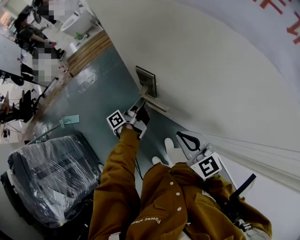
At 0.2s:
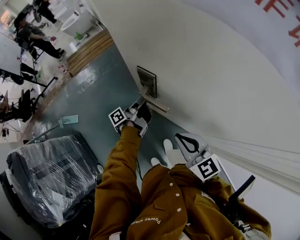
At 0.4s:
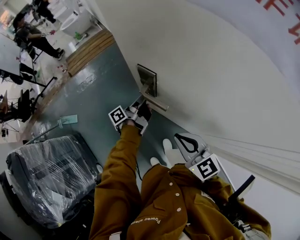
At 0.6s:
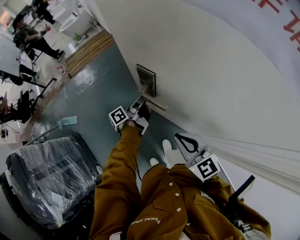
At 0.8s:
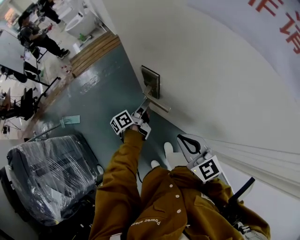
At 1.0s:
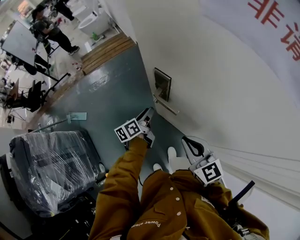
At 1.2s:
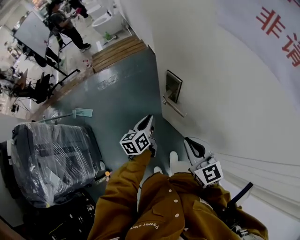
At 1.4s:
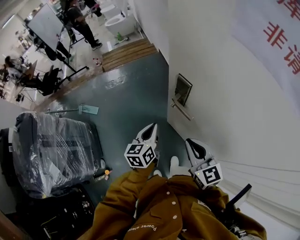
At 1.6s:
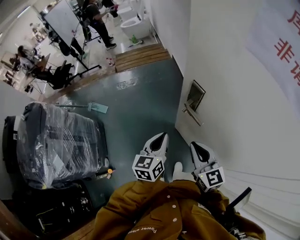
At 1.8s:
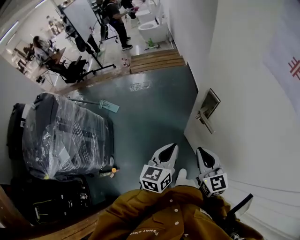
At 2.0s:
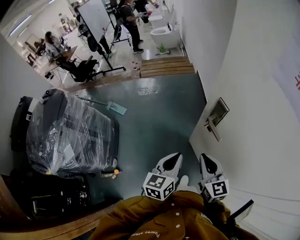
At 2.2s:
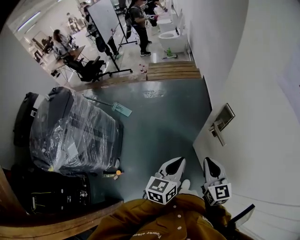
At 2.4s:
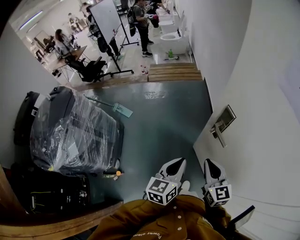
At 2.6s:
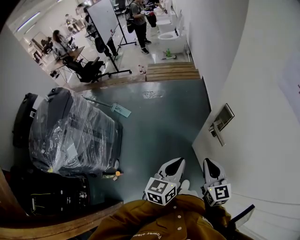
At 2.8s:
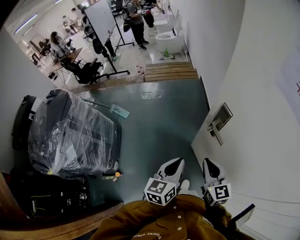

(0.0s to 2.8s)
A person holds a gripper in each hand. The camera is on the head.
0.0s - 1.4s: The left gripper moves backward, upward and to the left, approximately 15 cm, rolls clockwise, seen from behind, by approximately 60 degrees, and opens, then closes again.
1.4s - 2.8s: The right gripper goes about 5 cm to the left; the left gripper moves backward and upward, roughly 10 cm.

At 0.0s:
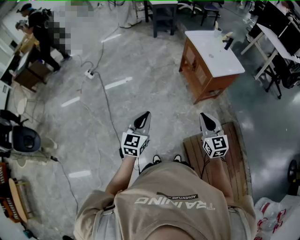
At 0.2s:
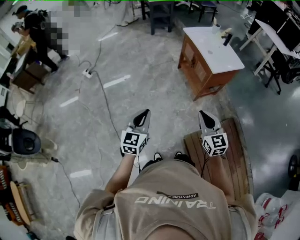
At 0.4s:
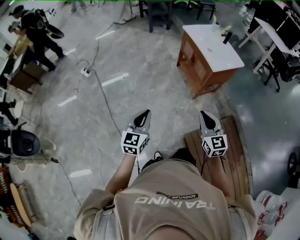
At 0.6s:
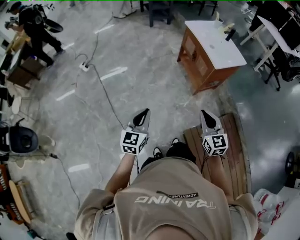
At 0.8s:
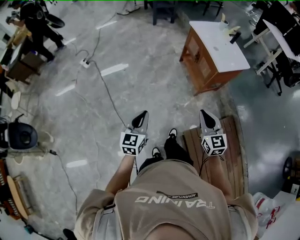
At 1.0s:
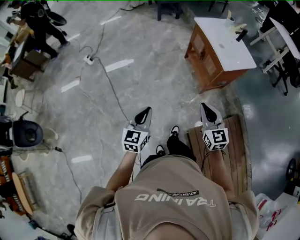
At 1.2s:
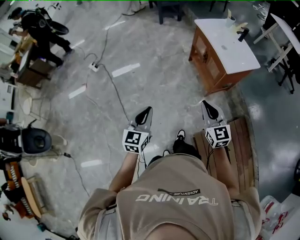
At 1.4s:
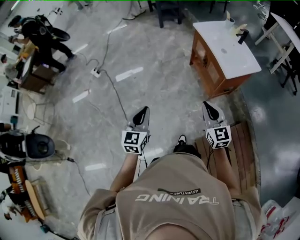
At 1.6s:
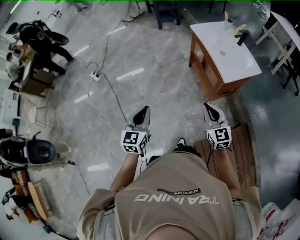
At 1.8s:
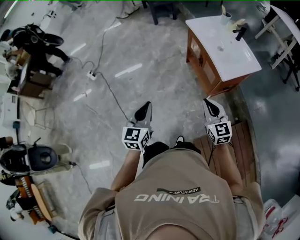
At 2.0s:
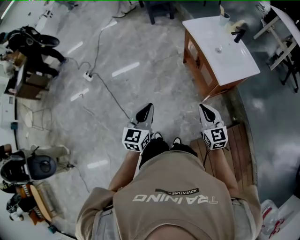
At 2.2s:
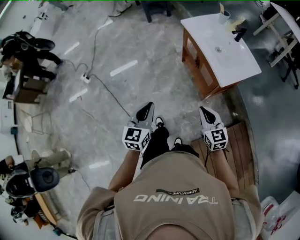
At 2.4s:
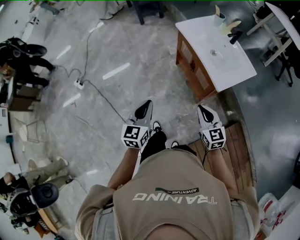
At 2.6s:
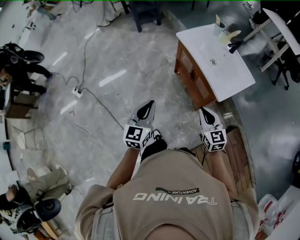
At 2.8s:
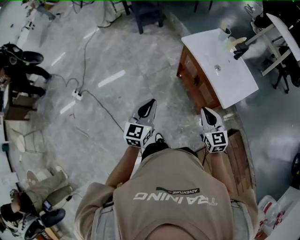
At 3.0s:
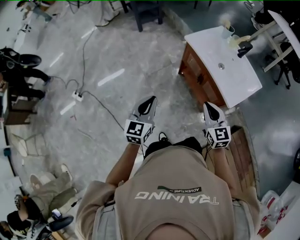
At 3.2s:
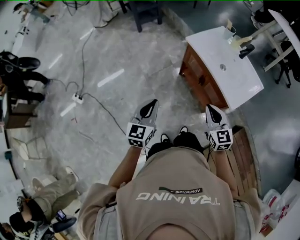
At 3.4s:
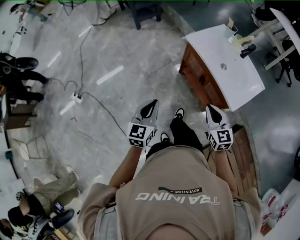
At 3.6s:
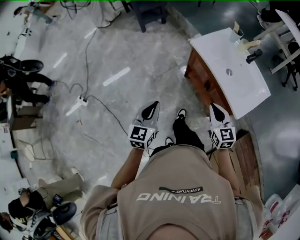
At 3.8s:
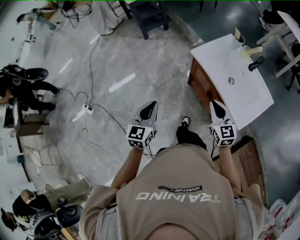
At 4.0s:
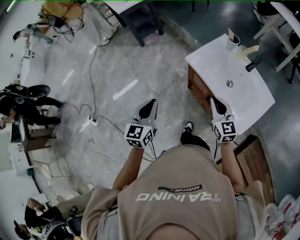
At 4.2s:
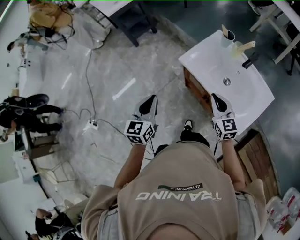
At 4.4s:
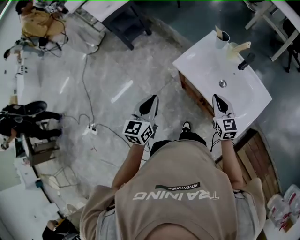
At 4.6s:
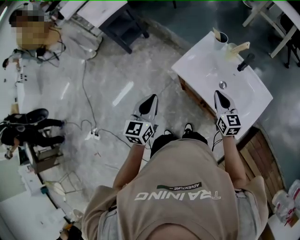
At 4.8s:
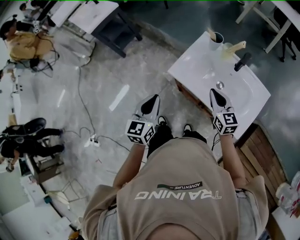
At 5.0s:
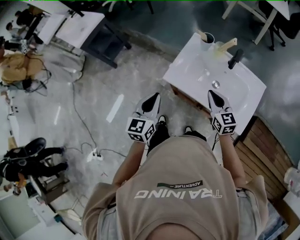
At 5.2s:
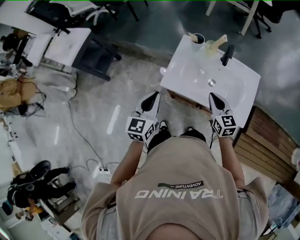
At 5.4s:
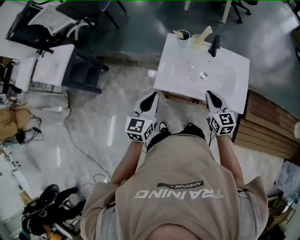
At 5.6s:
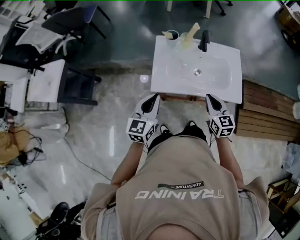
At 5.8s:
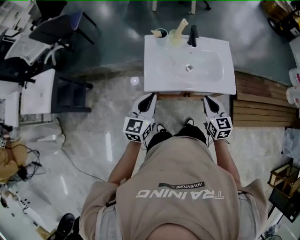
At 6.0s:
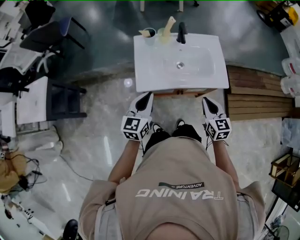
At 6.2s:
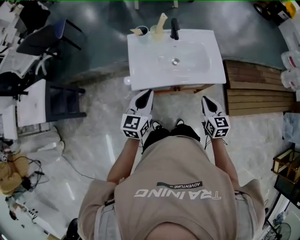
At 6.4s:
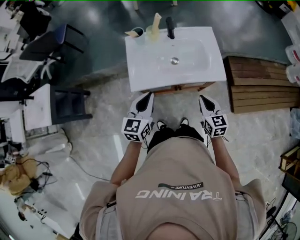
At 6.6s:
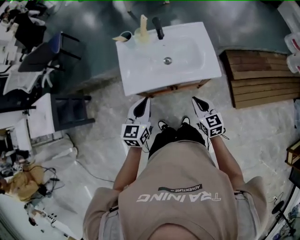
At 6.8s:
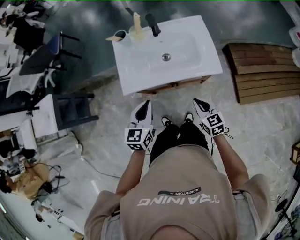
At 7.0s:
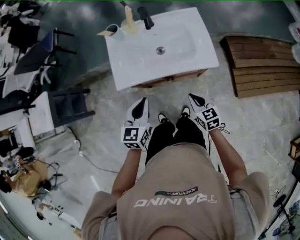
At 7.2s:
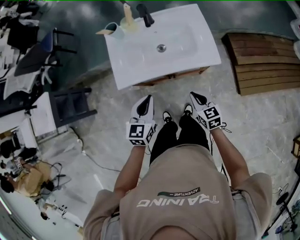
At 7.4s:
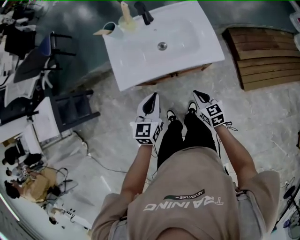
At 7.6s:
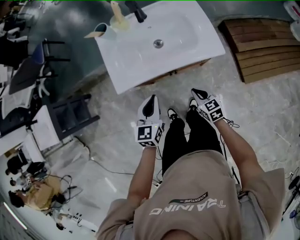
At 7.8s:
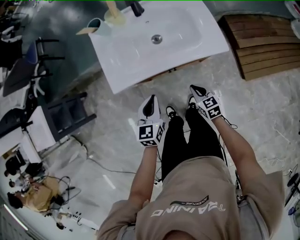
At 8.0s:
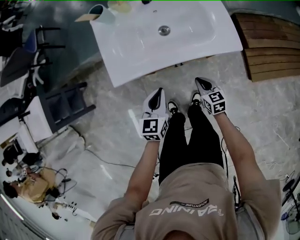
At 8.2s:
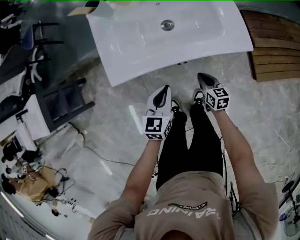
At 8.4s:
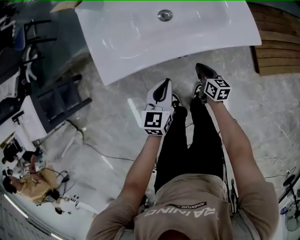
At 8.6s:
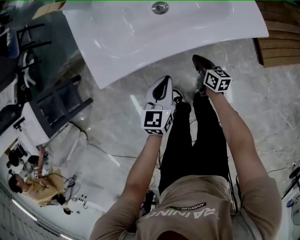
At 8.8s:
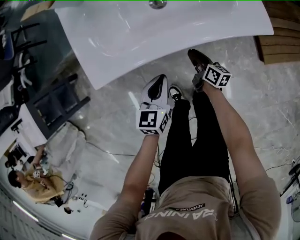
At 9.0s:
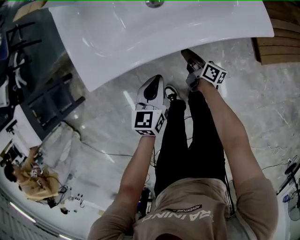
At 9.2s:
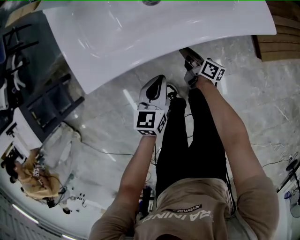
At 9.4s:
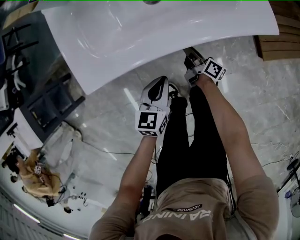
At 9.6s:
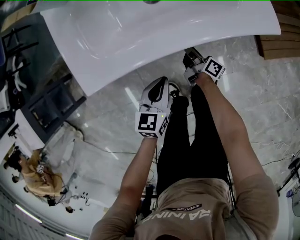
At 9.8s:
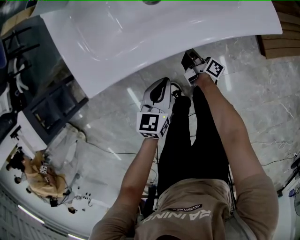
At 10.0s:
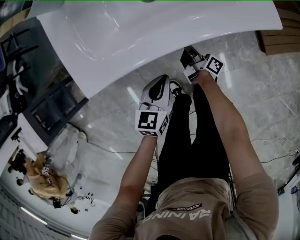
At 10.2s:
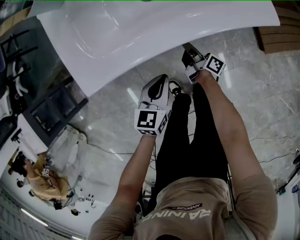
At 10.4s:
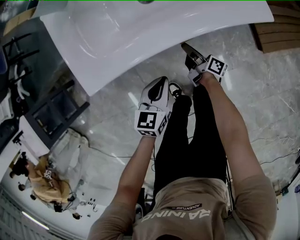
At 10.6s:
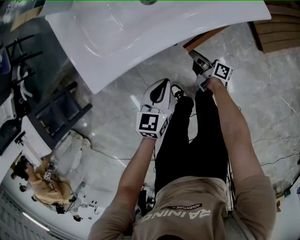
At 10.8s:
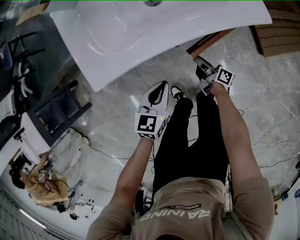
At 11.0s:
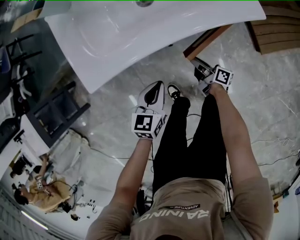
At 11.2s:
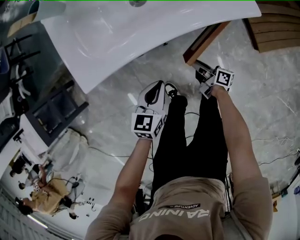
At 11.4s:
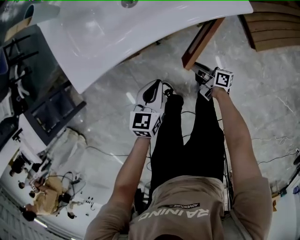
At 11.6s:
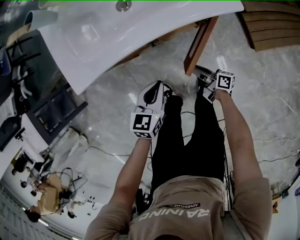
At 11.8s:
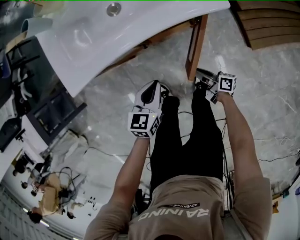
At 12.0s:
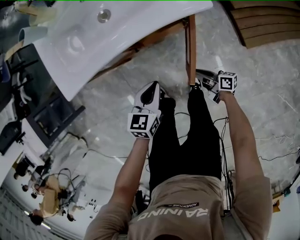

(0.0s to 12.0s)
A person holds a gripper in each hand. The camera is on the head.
0.0s - 1.6s: Both grippers travel together forward, approximately 20 cm.
1.6s - 3.0s: Both grippers travel together forward, approximately 30 cm.
3.0s - 4.4s: Both grippers travel together forward, about 30 cm.
4.4s - 6.0s: The right gripper shifts by some 10 cm, and changes its angle by some 50 degrees; the left gripper changes place by approximately 15 cm, and swivels approximately 60 degrees.
6.0s - 7.6s: The right gripper heads downward, covering approximately 20 cm, and changes its angle by some 20 degrees. Meanwhile the left gripper goes approximately 15 cm to the right and downward.
7.6s - 9.0s: The left gripper heads downward, covering about 20 cm, while the right gripper heads downward and forward, covering about 25 cm, rotates around the line of its fingers by approximately 60 degrees, clockwise from behind, and opens up.
10.4s - 12.0s: The right gripper is displaced to the right and backward by some 25 cm, and swivels about 30 degrees. Meanwhile the left gripper moves to the right, approximately 10 cm.

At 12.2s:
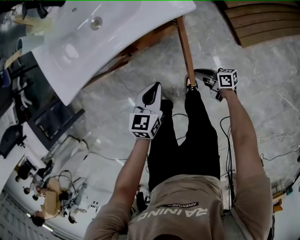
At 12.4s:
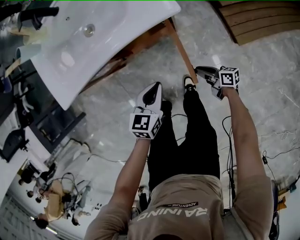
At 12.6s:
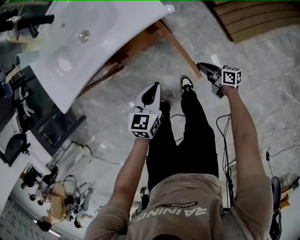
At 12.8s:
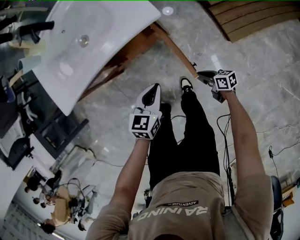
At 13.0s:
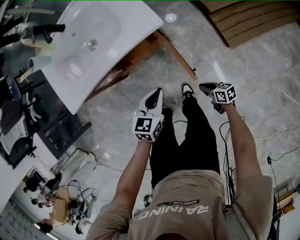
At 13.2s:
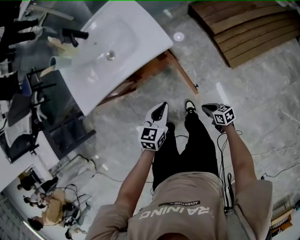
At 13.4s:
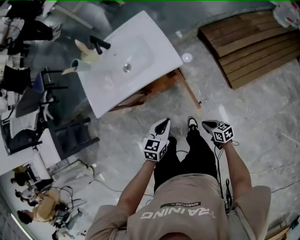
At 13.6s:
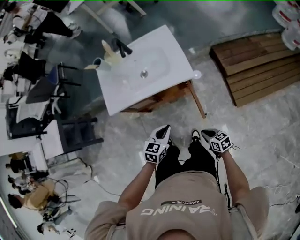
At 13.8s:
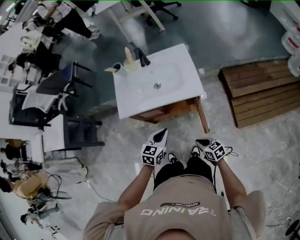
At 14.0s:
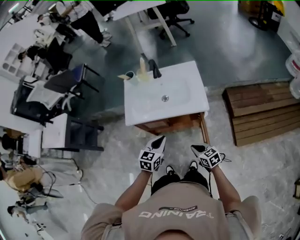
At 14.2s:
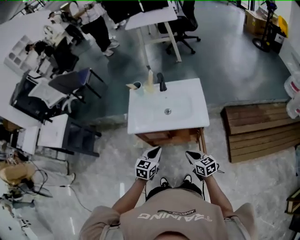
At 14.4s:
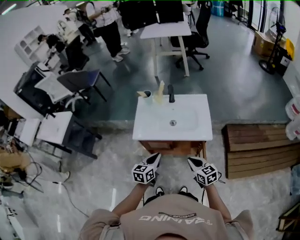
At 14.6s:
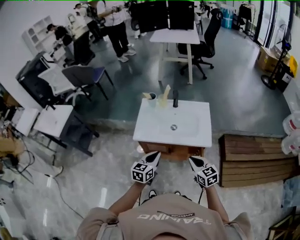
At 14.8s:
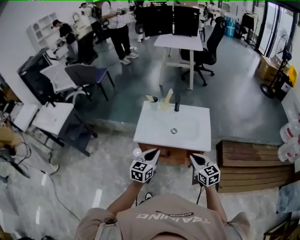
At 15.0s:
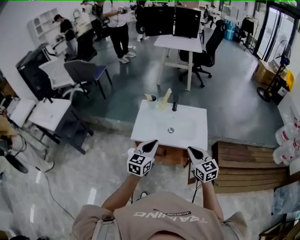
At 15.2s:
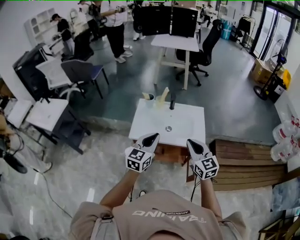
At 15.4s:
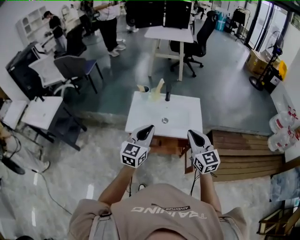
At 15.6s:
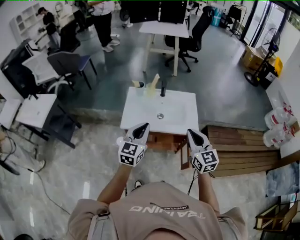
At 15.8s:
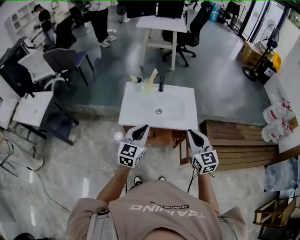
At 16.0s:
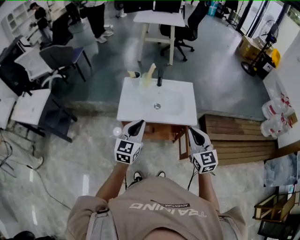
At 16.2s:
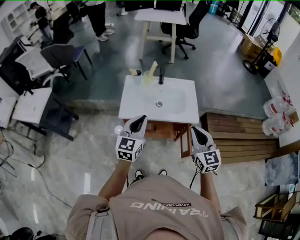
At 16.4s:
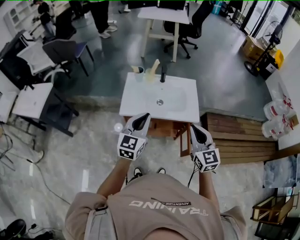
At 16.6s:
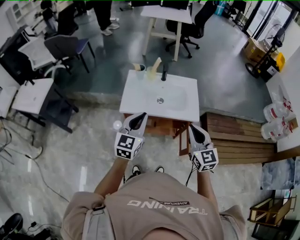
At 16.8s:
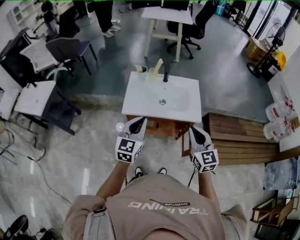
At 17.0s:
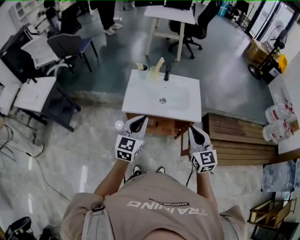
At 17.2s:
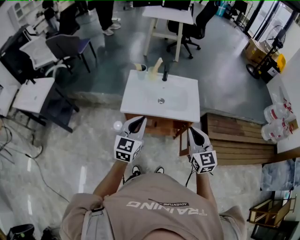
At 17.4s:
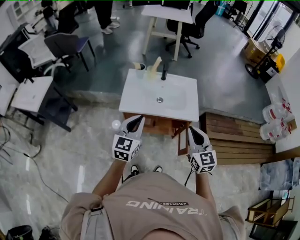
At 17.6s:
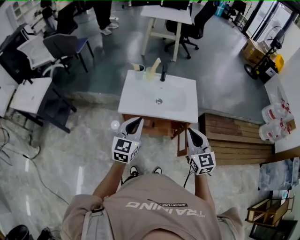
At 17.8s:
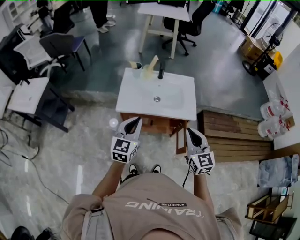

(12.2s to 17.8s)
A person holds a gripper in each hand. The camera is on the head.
12.2s - 13.6s: The right gripper heads upward and backward, covering about 20 cm, and turns by approximately 40 degrees. Meanwhile the left gripper shifts some 15 cm upward.
13.6s - 15.0s: The right gripper heads upward and forward, covering approximately 40 cm, and rolls counterclockwise, seen from behind, by approximately 40 degrees; the left gripper heads upward, to the left and forward, covering some 30 cm, and swivels roughly 40 degrees.
15.0s - 16.4s: The right gripper travels upward and backward by approximately 10 cm. The left gripper ends up about 5 cm from where it was.
16.4s - 17.8s: There are only small adjustments of the grippers.

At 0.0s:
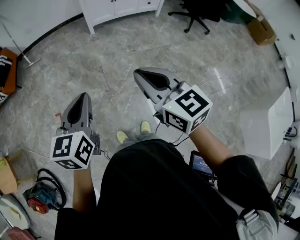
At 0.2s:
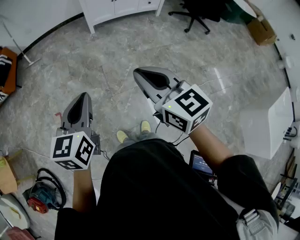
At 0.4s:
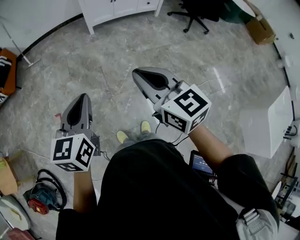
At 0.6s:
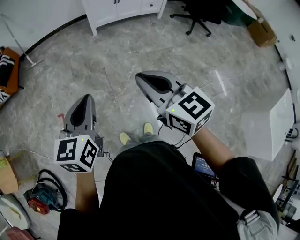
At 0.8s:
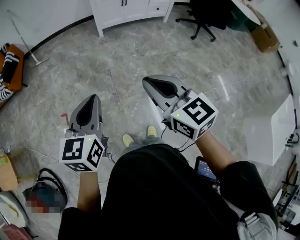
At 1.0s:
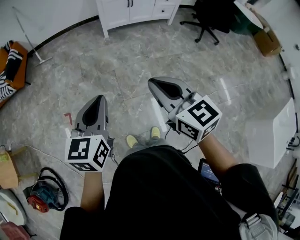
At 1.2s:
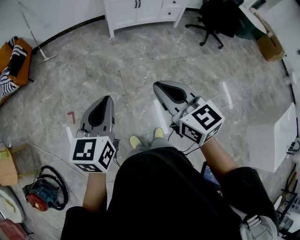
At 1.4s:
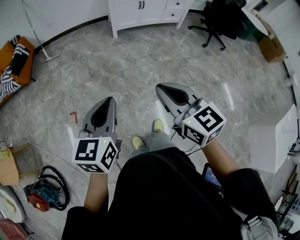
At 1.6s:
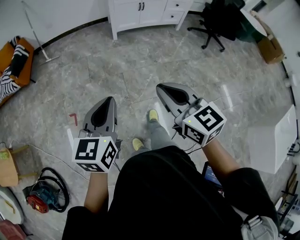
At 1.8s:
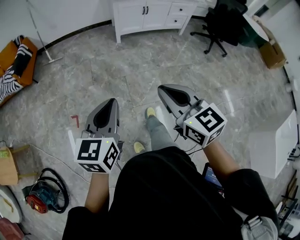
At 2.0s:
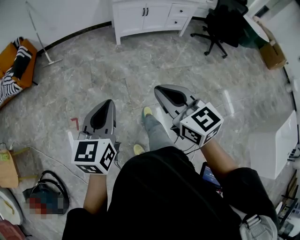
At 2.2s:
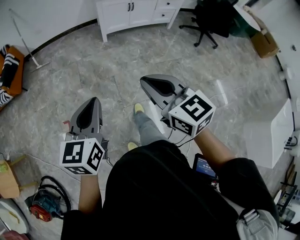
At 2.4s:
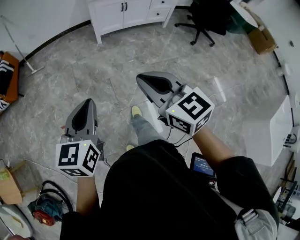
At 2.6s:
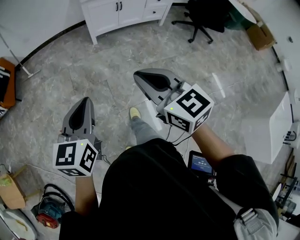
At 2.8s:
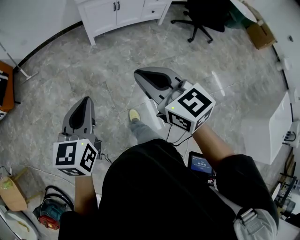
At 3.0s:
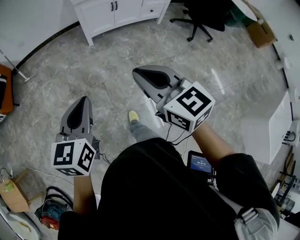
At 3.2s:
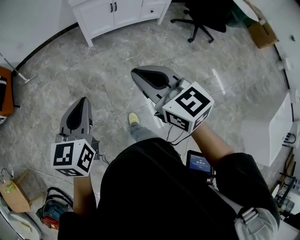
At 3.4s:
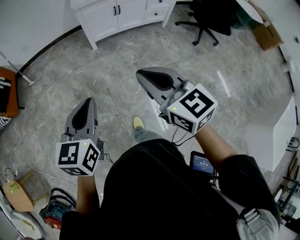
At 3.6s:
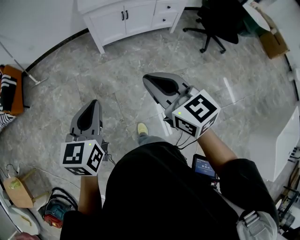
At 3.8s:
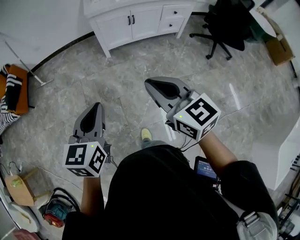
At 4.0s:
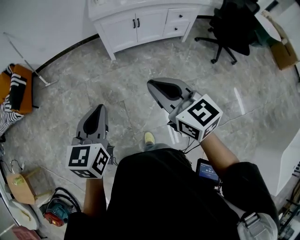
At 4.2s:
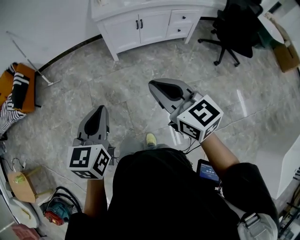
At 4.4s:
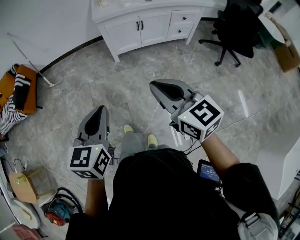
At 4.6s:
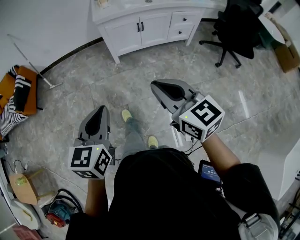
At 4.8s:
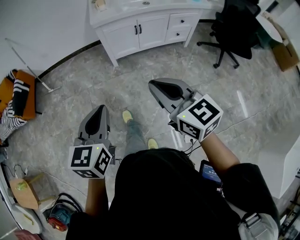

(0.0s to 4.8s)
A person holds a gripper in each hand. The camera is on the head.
0.0s - 1.6s: The grippers both shift to the left by about 10 cm.
1.6s - 3.2s: The grippers both shift forward and to the right by about 25 cm.
3.2s - 4.8s: Both grippers move forward, some 15 cm.
